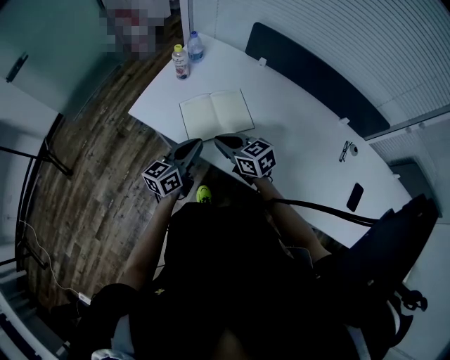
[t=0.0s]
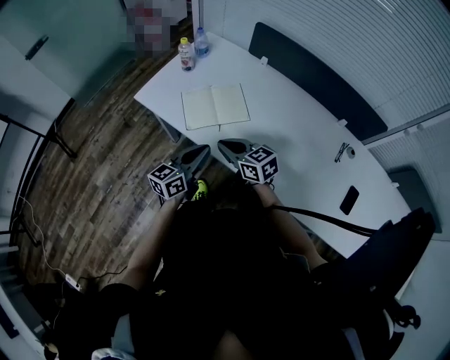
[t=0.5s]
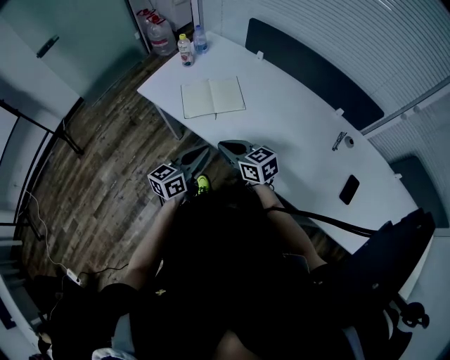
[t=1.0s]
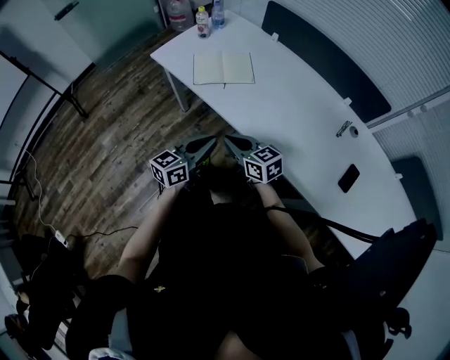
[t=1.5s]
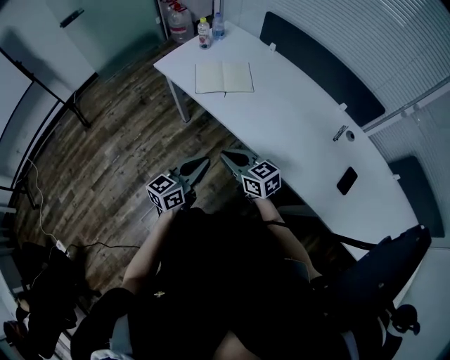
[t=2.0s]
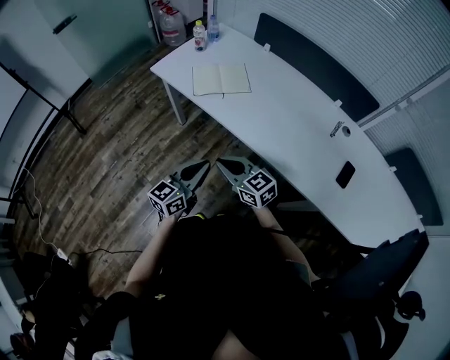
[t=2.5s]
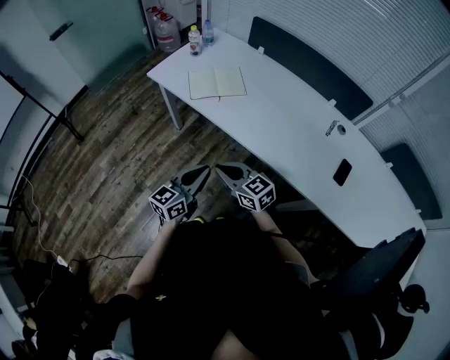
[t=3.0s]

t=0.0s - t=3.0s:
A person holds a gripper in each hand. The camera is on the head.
t=0.0s - t=1.5s: Both grippers travel together backward, approximately 25 cm.
t=1.5s - t=3.0s: Both grippers travel together backward, approximately 10 cm.

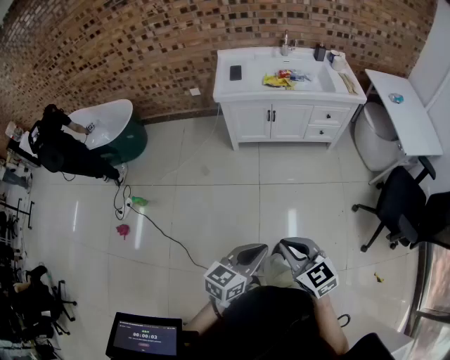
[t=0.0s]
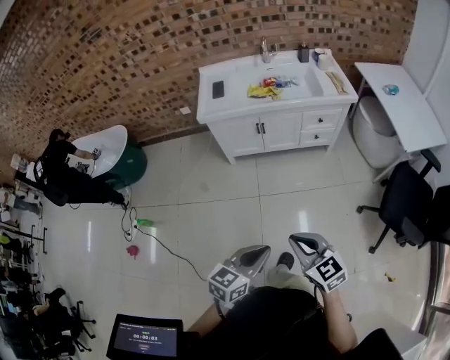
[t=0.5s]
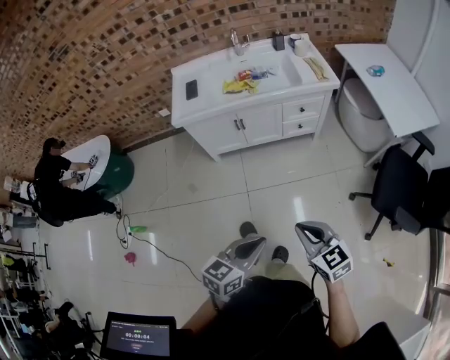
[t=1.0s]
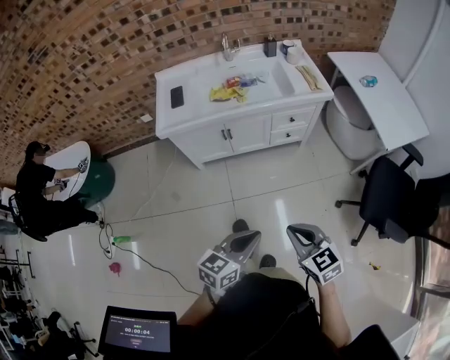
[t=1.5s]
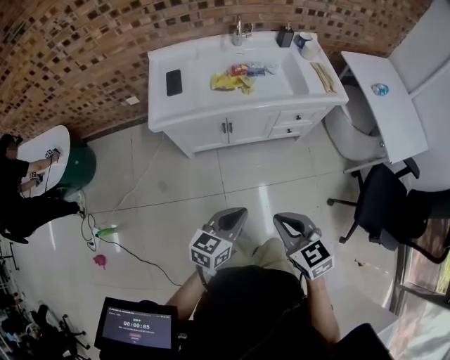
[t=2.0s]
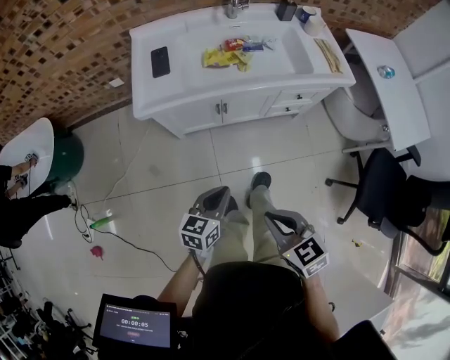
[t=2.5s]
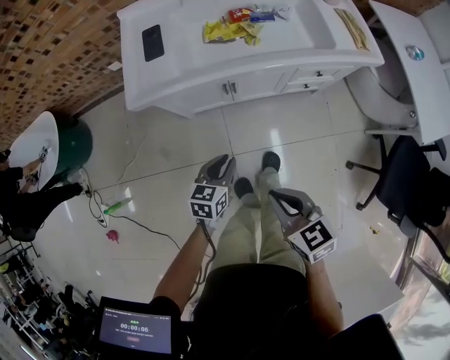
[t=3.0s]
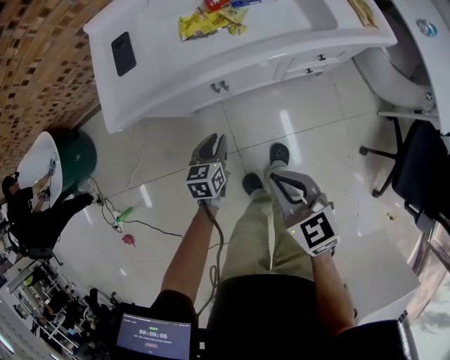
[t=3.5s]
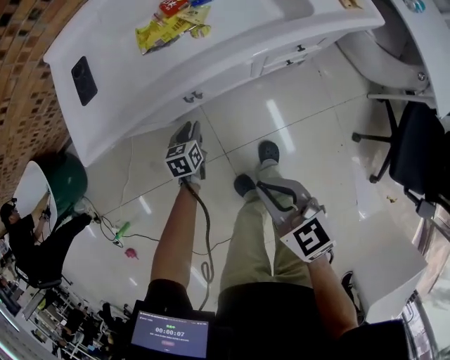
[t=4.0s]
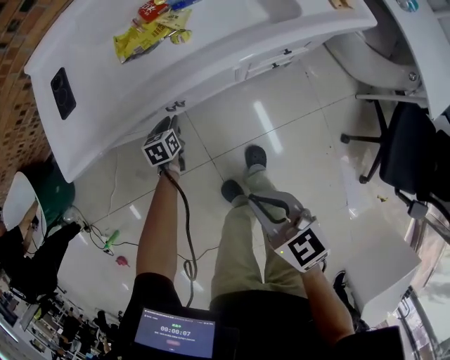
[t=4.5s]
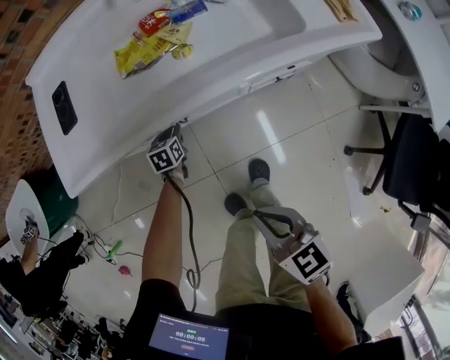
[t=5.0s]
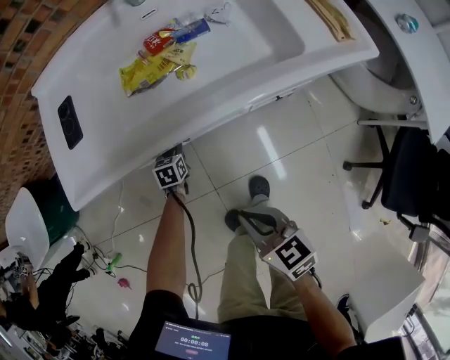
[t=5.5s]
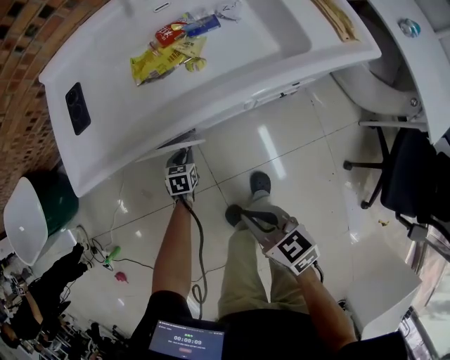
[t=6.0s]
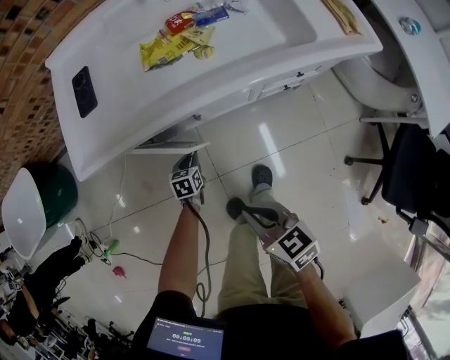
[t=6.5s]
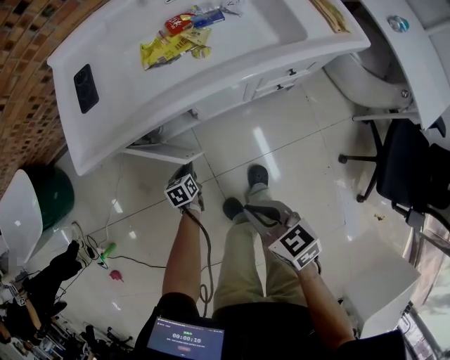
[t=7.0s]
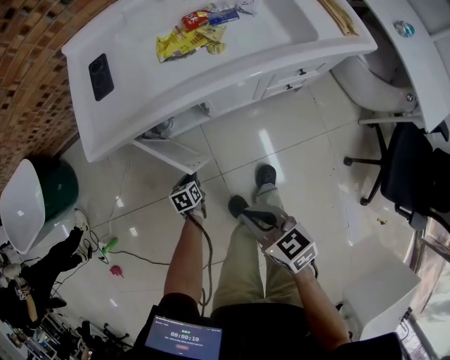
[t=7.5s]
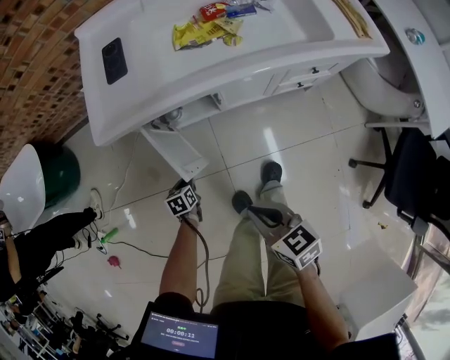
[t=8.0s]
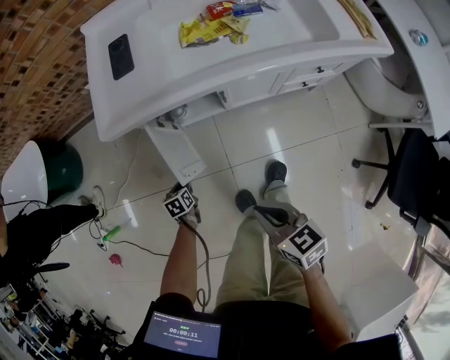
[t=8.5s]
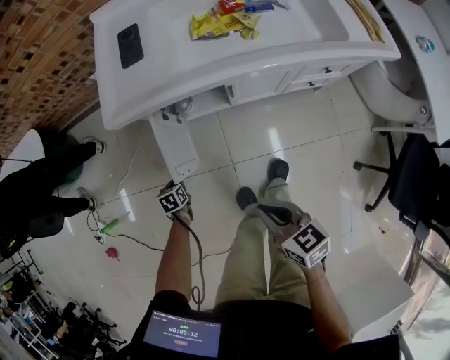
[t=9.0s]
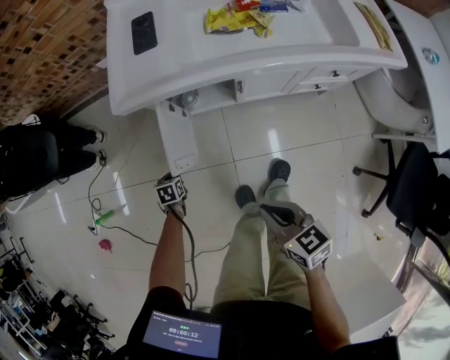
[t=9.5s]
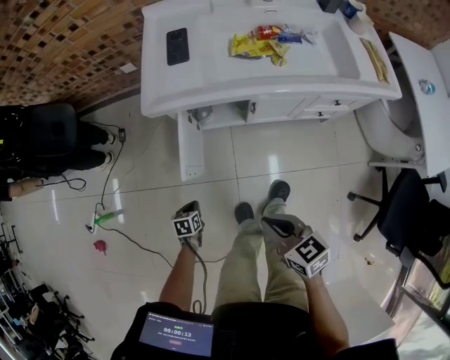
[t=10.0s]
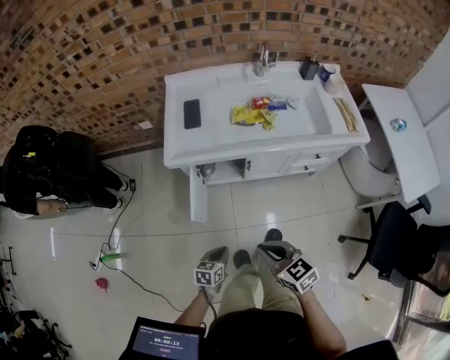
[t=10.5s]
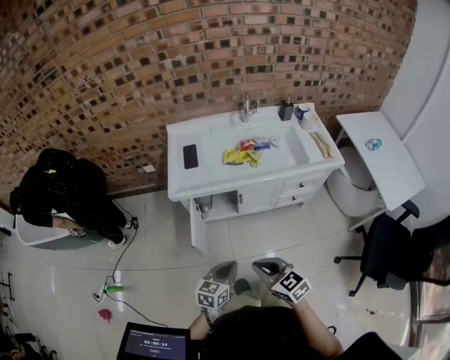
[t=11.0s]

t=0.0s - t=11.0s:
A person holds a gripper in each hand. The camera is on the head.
t=0.0s - t=2.0s: The grippers both shift forward by approximately 40 cm.
t=2.0s - t=3.5s: The left gripper travels downward and forward by approximately 40 cm, swivels approximately 30 degrees, and opens its fingers; the right gripper heads forward and downward, covering some 25 cm.
t=3.5s - t=5.5s: The left gripper goes roughly 25 cm downward and forward, while the right gripper travels downward and forward by roughly 10 cm.
t=5.5s - t=7.5s: The right gripper heads to the left and backward, covering about 15 cm. The left gripper is displaced backward and to the left by roughly 25 cm.
t=7.5s - t=9.0s: The left gripper heads to the left, covering approximately 15 cm.
t=9.0s - t=11.0s: The right gripper goes roughly 20 cm upward, and turns by roughly 20 degrees. Meanwhile the left gripper moves upward, backward and to the right, about 50 cm, and tilts its fingers roughly 40 degrees upward.

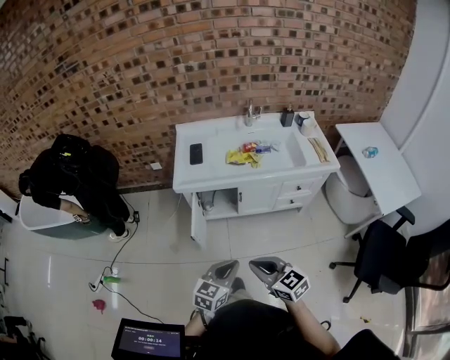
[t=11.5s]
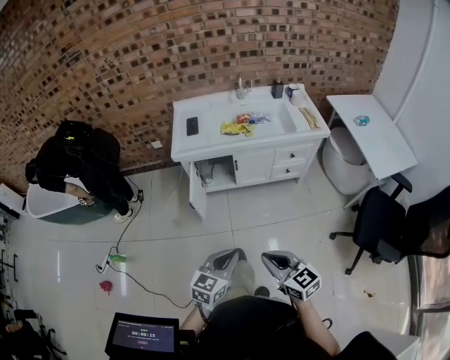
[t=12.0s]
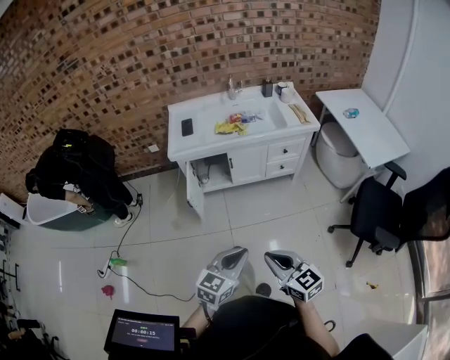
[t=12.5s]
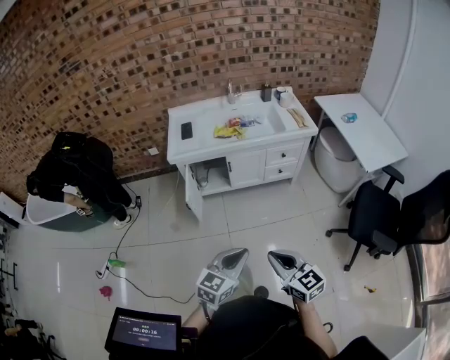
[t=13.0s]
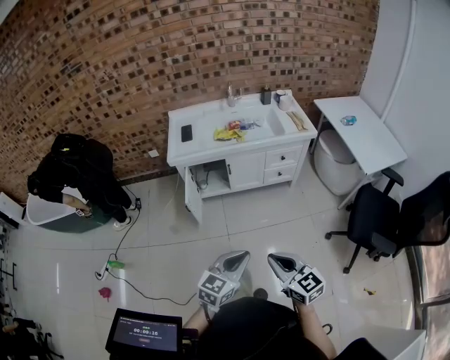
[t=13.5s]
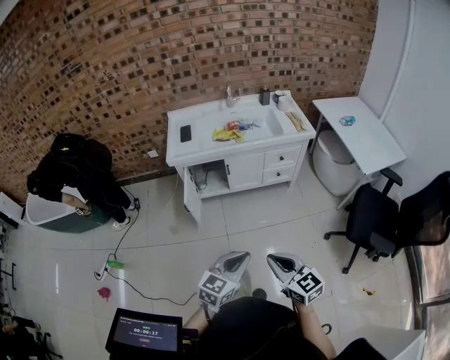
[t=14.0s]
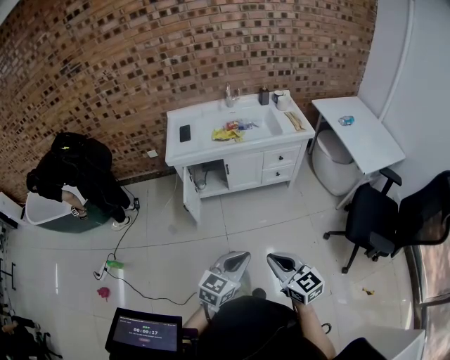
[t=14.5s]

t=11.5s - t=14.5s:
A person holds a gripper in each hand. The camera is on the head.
t=11.5s - t=13.0s: The left gripper travels backward by about 20 cm. Meanwhile the right gripper travels backward and to the right by roughly 25 cm.
t=13.0s - t=14.5s: The grippers stay close to where they were, moving slightly.

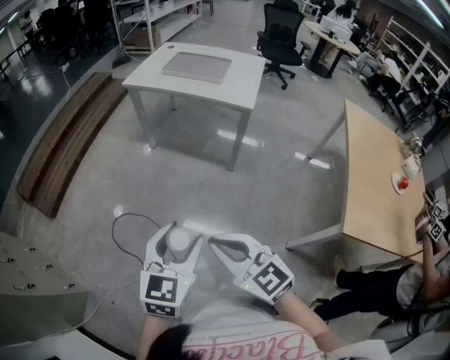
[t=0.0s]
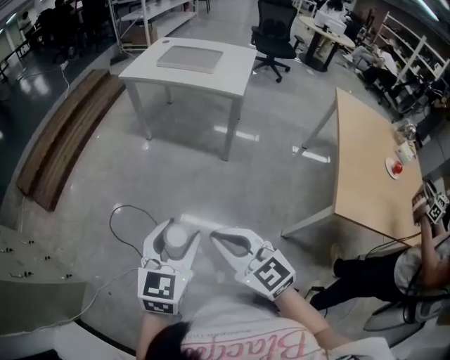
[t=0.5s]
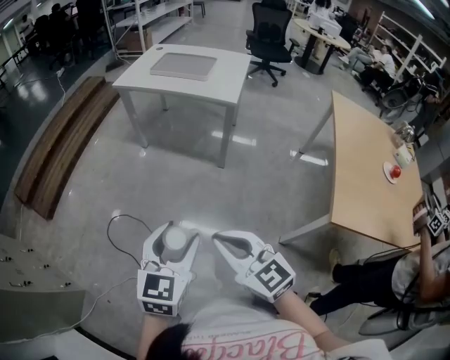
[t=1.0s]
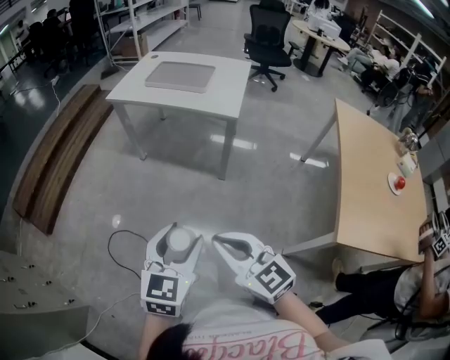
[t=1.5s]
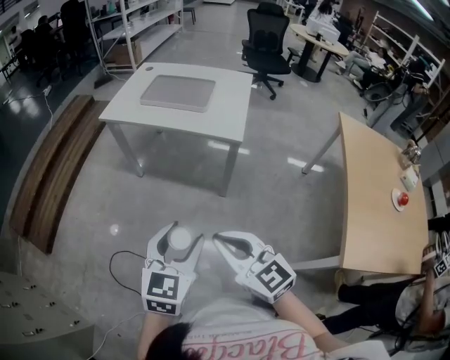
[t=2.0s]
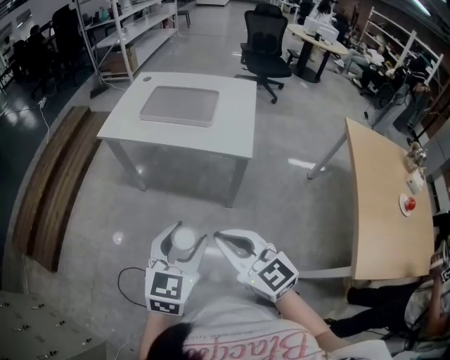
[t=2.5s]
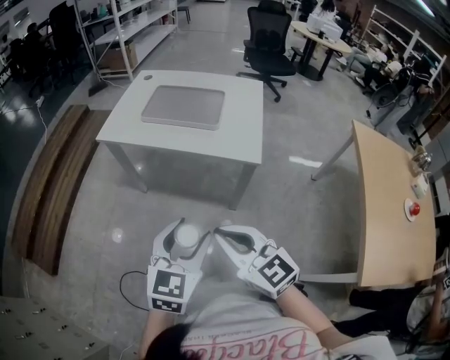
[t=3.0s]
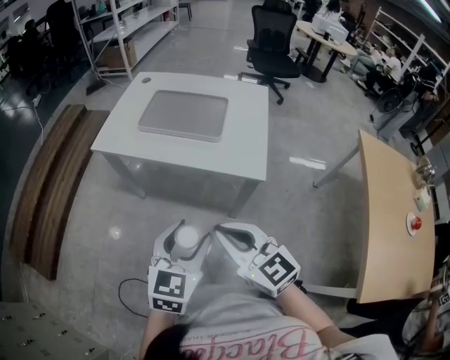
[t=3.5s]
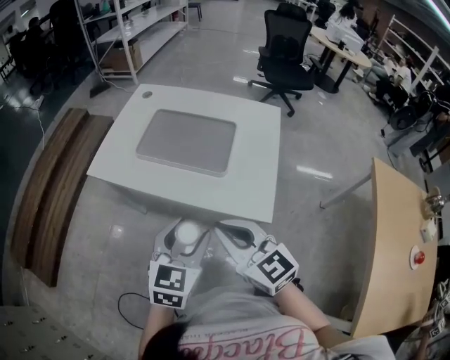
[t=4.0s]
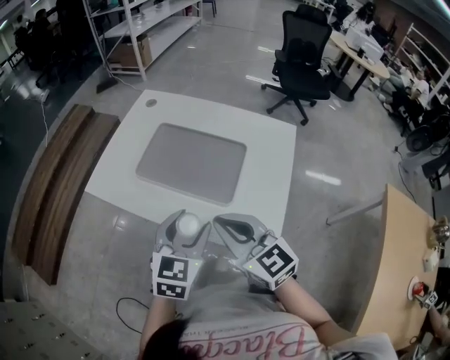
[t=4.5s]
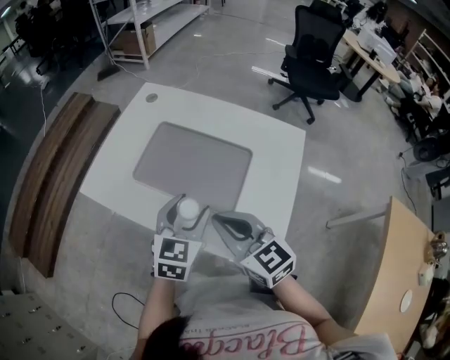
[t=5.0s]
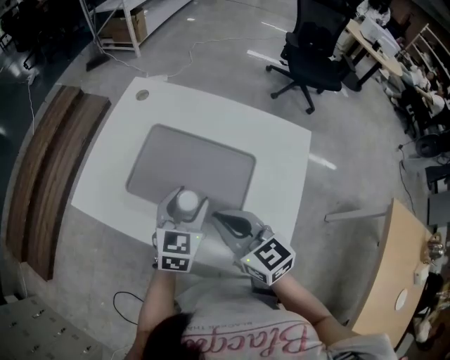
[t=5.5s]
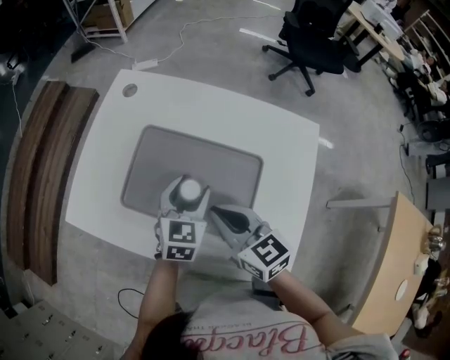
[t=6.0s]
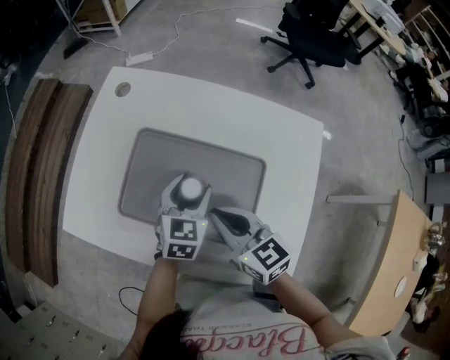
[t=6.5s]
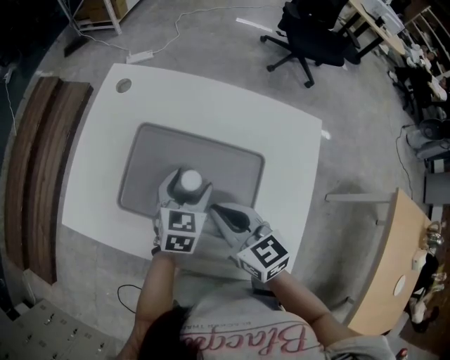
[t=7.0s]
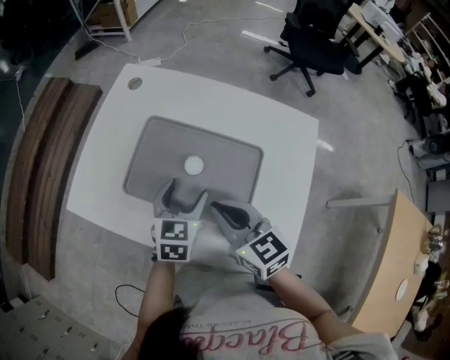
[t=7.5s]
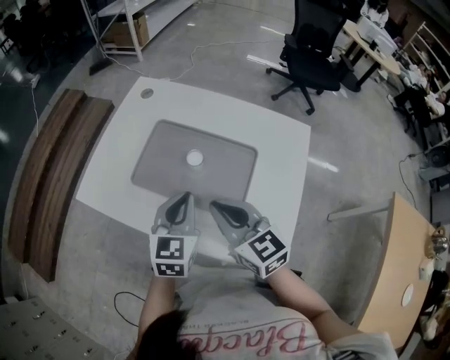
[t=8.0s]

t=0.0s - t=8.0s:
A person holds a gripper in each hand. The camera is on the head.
t=0.0s - t=2.0s: Both grippers travel together forward and to the right, roughly 15 cm.
t=2.0s - t=4.0s: Both grippers travel together forward, approximately 30 cm.
t=4.0s - t=6.0s: The grippers both shift forward by some 25 cm.
t=6.0s - t=8.0s: The right gripper shifts by approximately 5 cm. The left gripper moves backward and upward, about 10 cm, and closes its fingers.

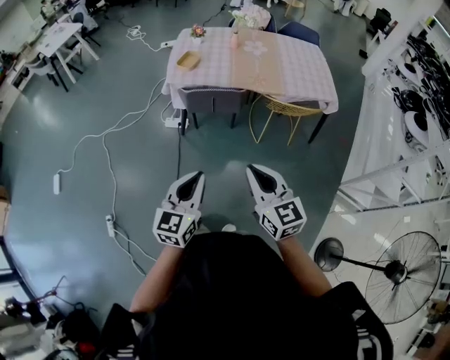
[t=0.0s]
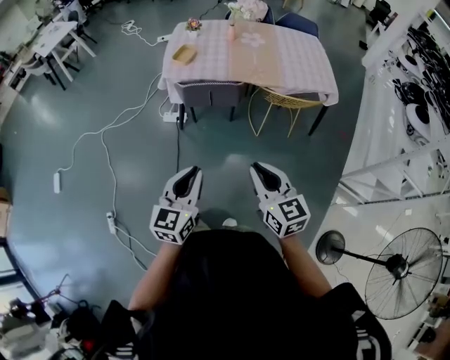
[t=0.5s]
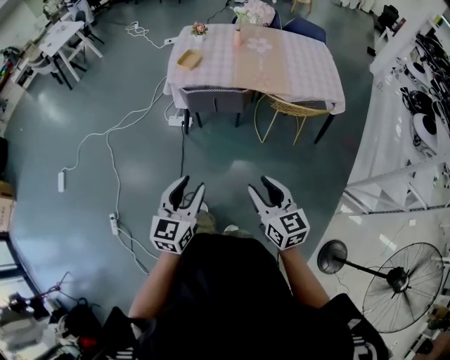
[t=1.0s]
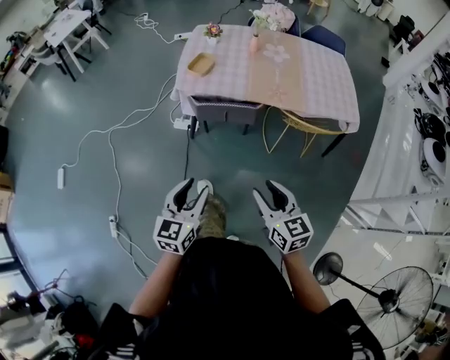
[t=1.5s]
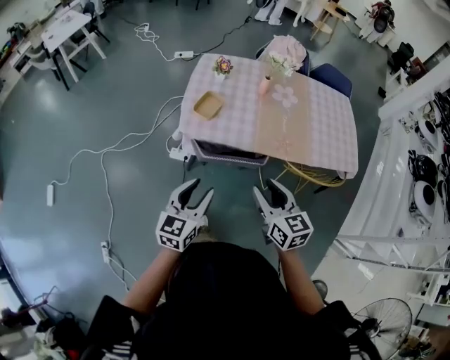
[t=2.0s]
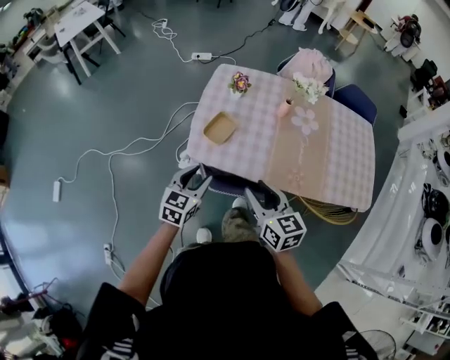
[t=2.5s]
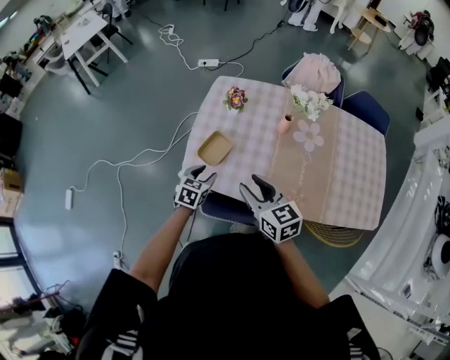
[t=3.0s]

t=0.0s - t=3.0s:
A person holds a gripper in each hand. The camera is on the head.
t=0.0s - t=1.5s: Both grippers move forward and downward, some 15 cm. The right gripper opens up; the left gripper opens.
t=1.5s - t=3.0s: The two grippers travel together, forward, roughly 50 cm. The left gripper turns by some 30 degrees.
